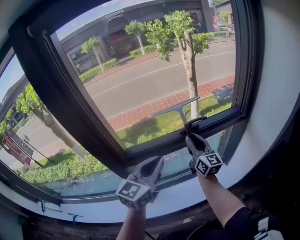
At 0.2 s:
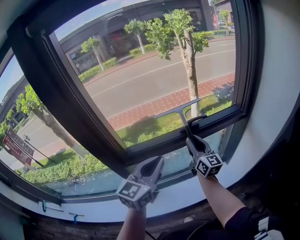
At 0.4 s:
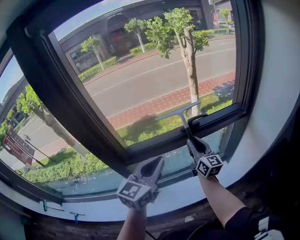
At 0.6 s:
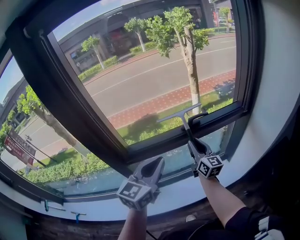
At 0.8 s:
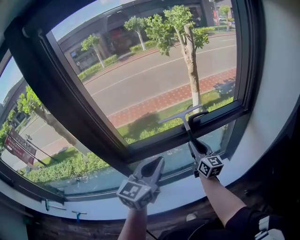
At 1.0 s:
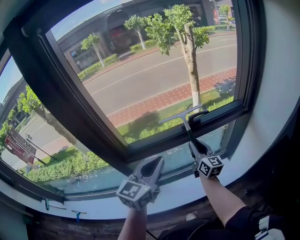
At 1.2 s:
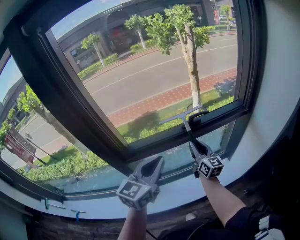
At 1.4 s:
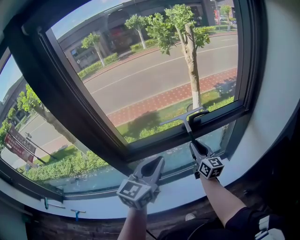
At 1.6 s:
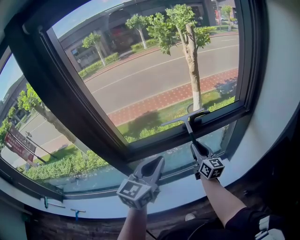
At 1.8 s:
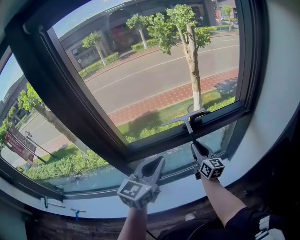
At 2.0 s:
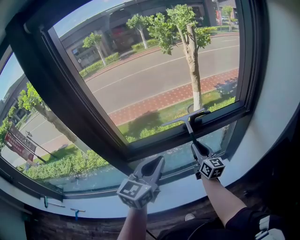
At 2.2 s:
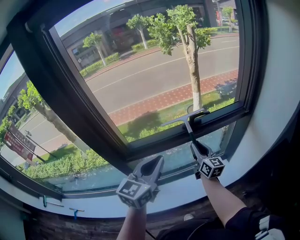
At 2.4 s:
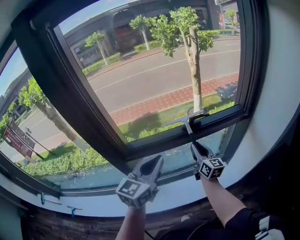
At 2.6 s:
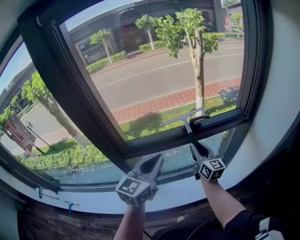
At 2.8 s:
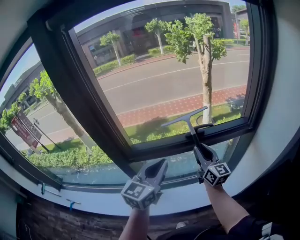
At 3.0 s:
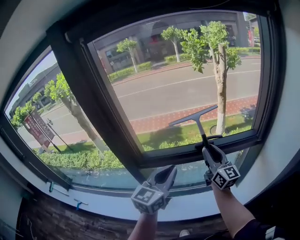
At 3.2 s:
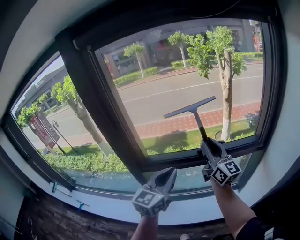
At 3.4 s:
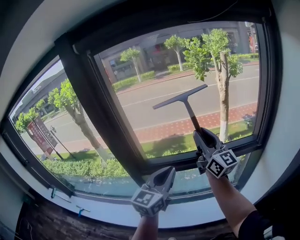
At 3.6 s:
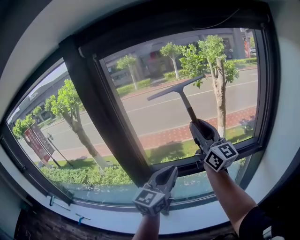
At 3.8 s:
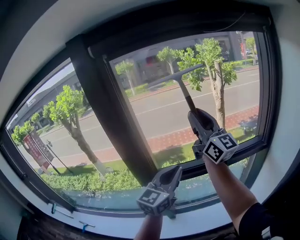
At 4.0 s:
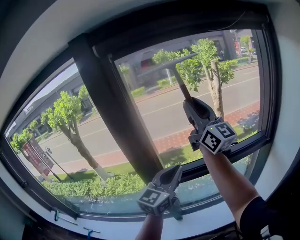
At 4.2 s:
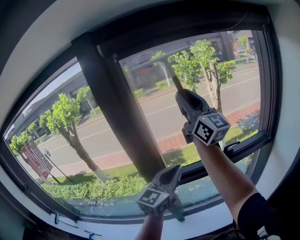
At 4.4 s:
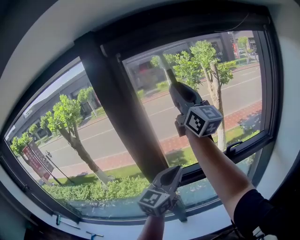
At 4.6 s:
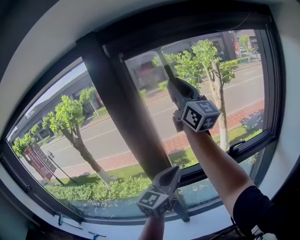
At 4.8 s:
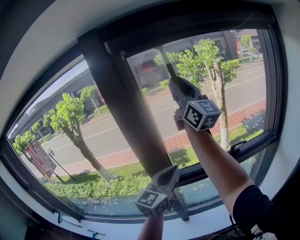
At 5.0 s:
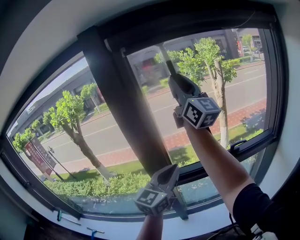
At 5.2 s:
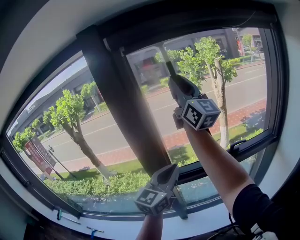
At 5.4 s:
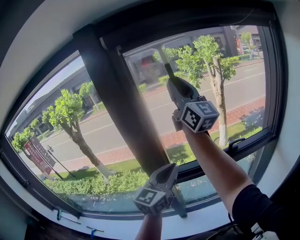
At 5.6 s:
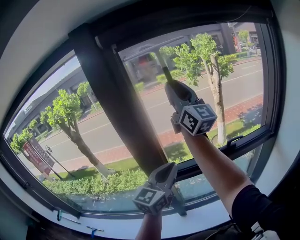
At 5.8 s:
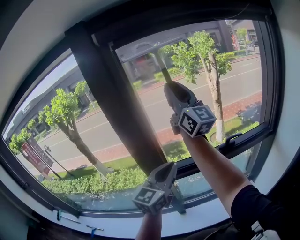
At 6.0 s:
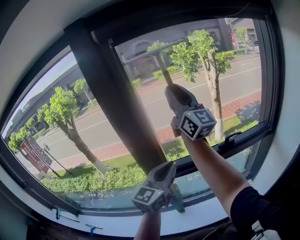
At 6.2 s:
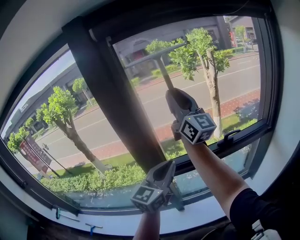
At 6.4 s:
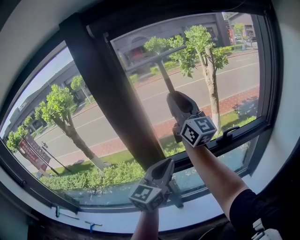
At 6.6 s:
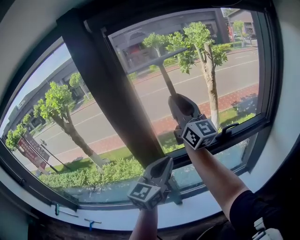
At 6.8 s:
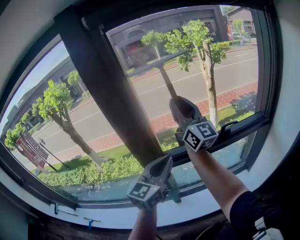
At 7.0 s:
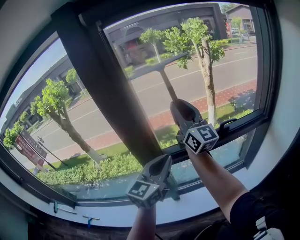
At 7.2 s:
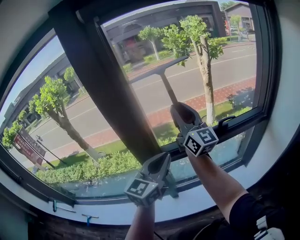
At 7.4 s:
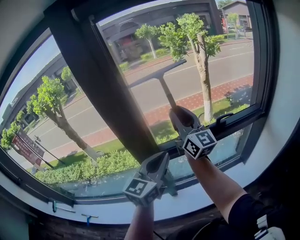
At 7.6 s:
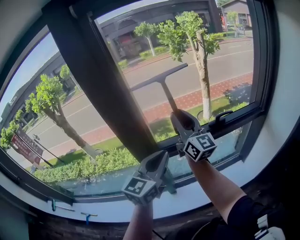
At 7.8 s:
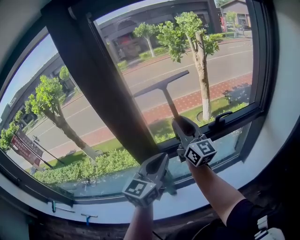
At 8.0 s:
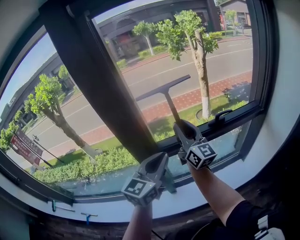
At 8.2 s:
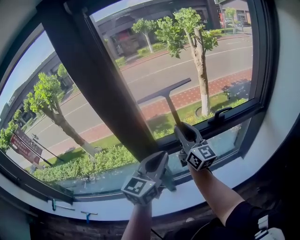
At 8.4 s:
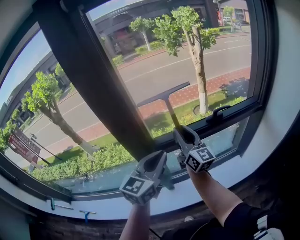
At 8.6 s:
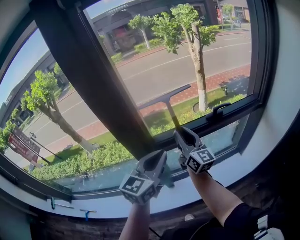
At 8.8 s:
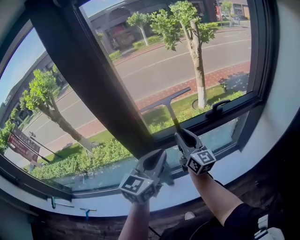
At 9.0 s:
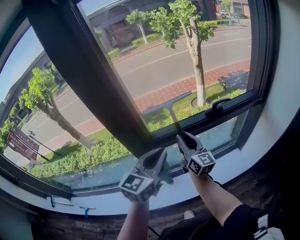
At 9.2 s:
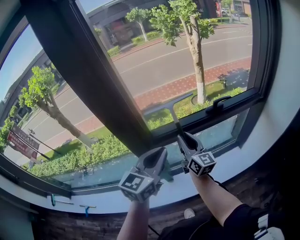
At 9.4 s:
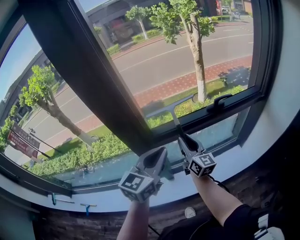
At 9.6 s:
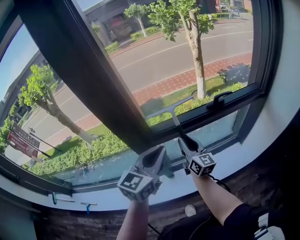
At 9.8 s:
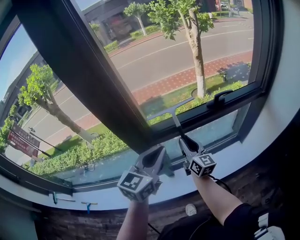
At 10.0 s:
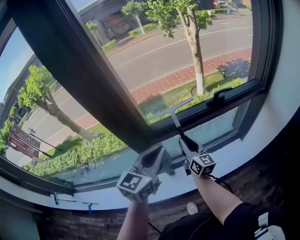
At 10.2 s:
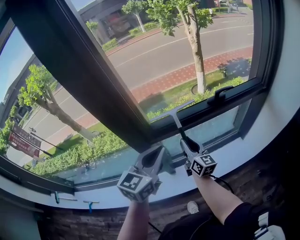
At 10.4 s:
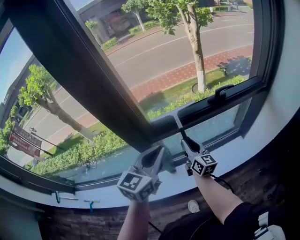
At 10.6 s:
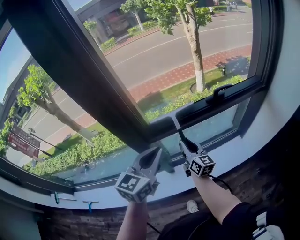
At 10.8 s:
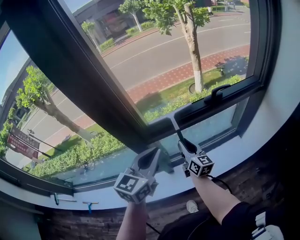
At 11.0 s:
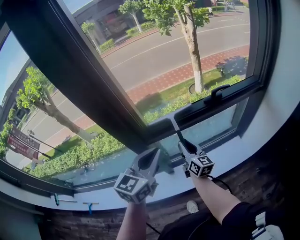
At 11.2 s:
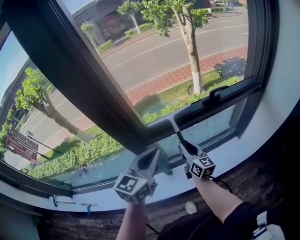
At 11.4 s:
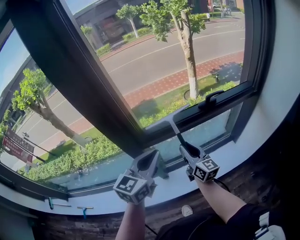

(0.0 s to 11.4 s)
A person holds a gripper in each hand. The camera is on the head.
0.0 s - 1.4 s: The right gripper travels downward by about 10 cm.
1.4 s - 2.8 s: The right gripper moves upward, roughly 10 cm.
2.8 s - 4.2 s: The right gripper travels upward and to the left by roughly 40 cm, and points its fingers about 30 degrees further upward; the left gripper is displaced to the left and upward by roughly 15 cm.
4.2 s - 5.6 s: The right gripper changes place by roughly 5 cm.
5.6 s - 7.2 s: The right gripper shifts approximately 20 cm downward.
7.2 s - 8.6 s: The right gripper moves downward, approximately 20 cm.
8.6 s - 10.0 s: The right gripper is displaced downward by approximately 15 cm.
10.0 s - 11.4 s: The grippers stay close to where they were, moving slightly.

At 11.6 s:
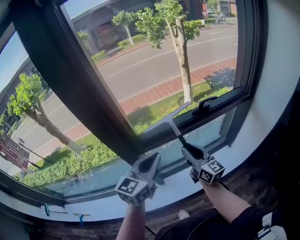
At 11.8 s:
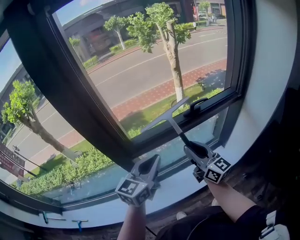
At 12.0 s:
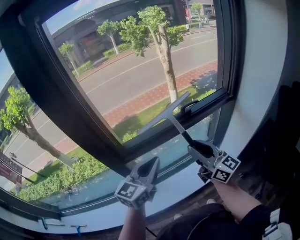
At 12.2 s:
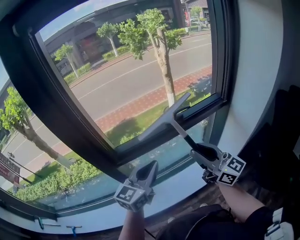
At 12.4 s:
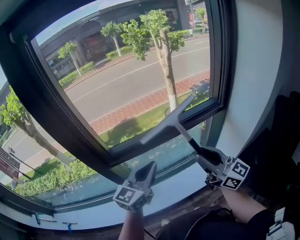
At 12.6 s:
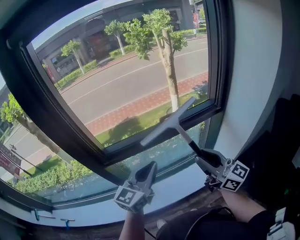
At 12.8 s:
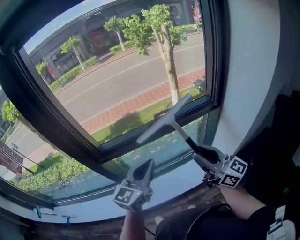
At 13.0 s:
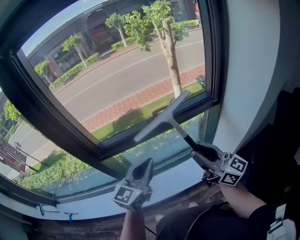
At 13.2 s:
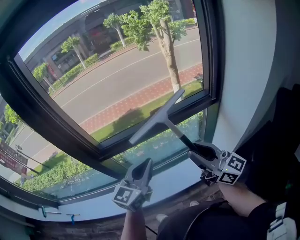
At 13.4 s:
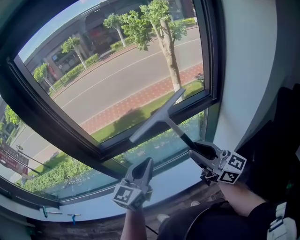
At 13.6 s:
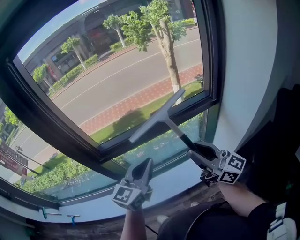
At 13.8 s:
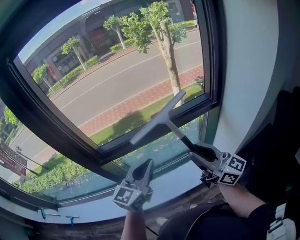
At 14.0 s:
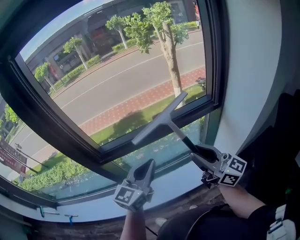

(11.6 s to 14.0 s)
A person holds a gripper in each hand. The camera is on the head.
11.6 s - 12.8 s: The left gripper travels to the right by roughly 20 cm, while the right gripper shifts about 30 cm to the right and upward.
12.8 s - 14.0 s: The grippers move only a little.

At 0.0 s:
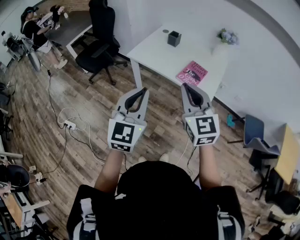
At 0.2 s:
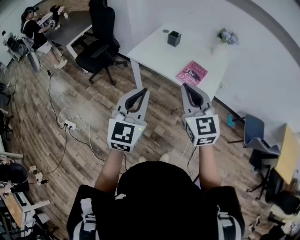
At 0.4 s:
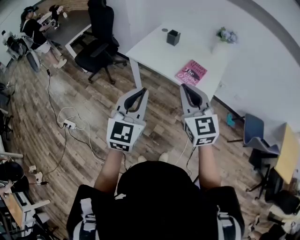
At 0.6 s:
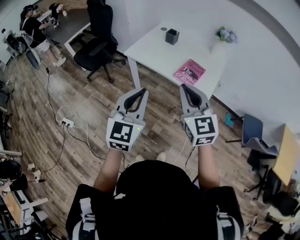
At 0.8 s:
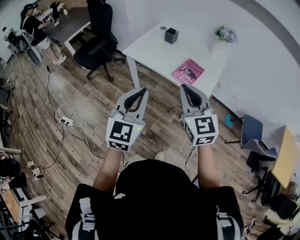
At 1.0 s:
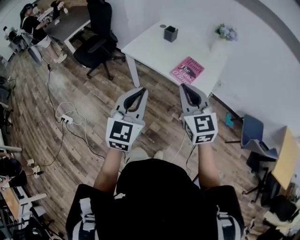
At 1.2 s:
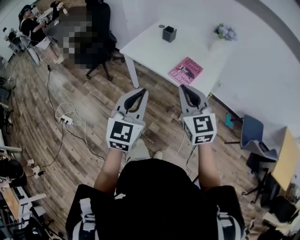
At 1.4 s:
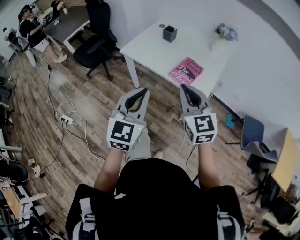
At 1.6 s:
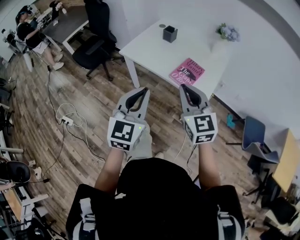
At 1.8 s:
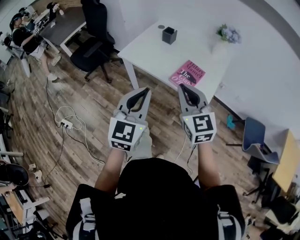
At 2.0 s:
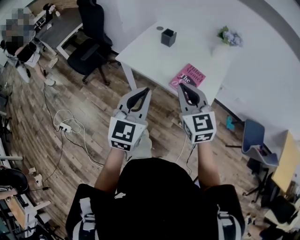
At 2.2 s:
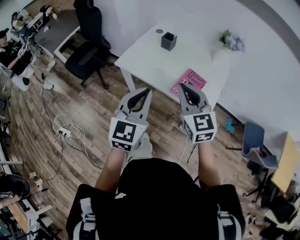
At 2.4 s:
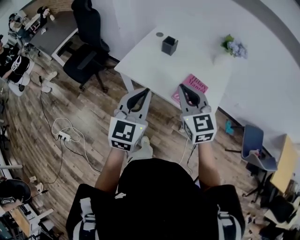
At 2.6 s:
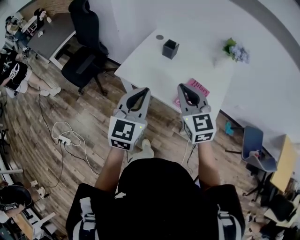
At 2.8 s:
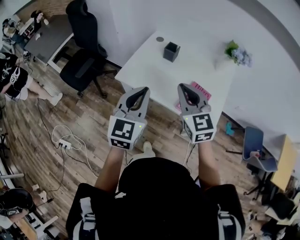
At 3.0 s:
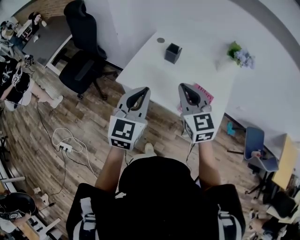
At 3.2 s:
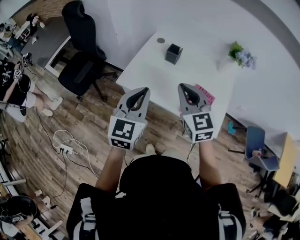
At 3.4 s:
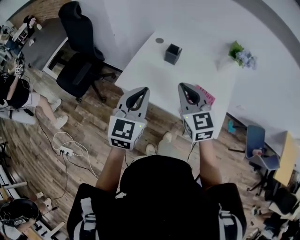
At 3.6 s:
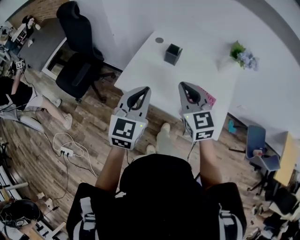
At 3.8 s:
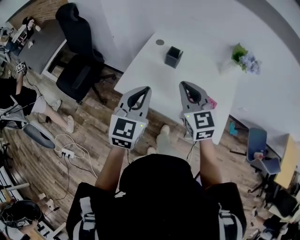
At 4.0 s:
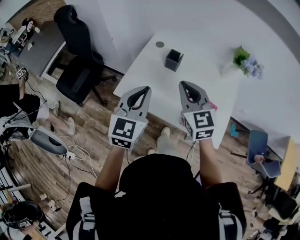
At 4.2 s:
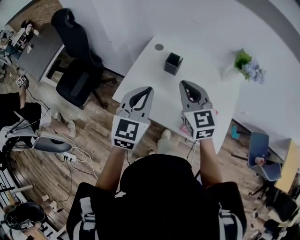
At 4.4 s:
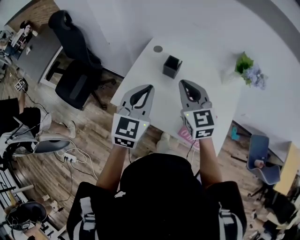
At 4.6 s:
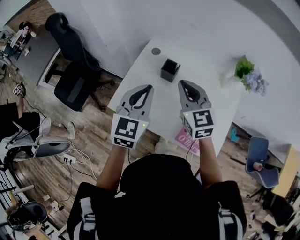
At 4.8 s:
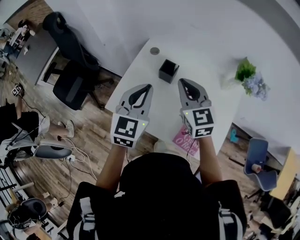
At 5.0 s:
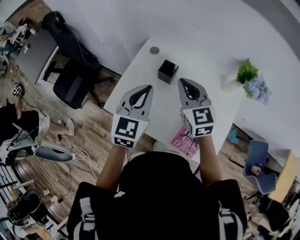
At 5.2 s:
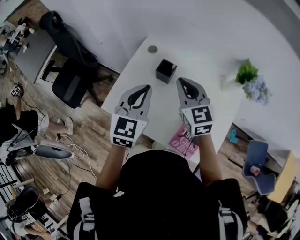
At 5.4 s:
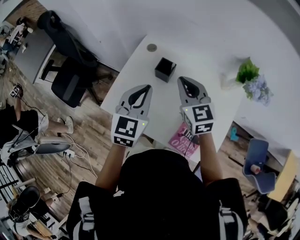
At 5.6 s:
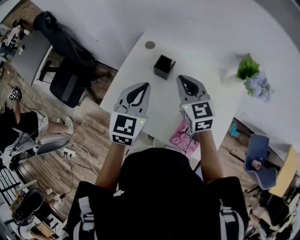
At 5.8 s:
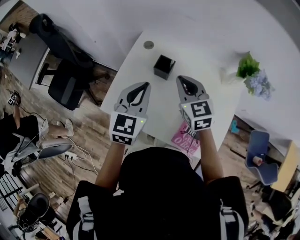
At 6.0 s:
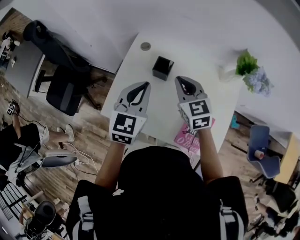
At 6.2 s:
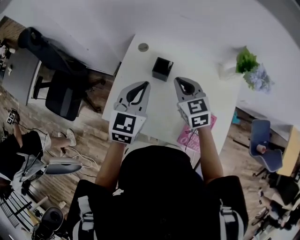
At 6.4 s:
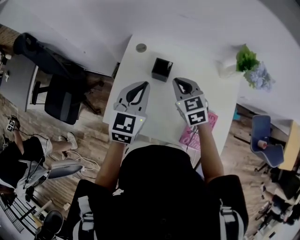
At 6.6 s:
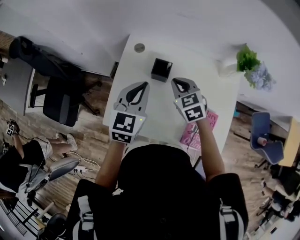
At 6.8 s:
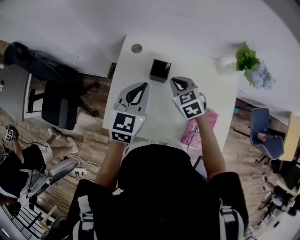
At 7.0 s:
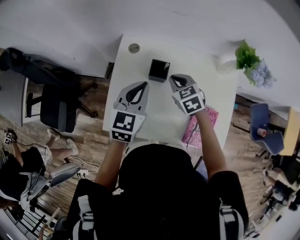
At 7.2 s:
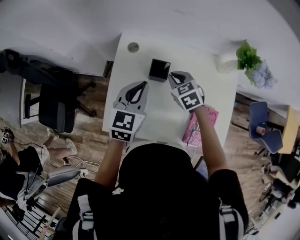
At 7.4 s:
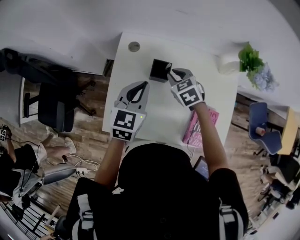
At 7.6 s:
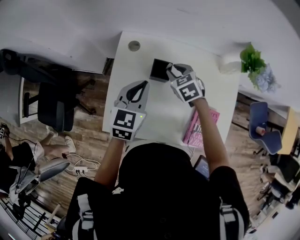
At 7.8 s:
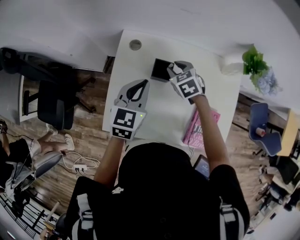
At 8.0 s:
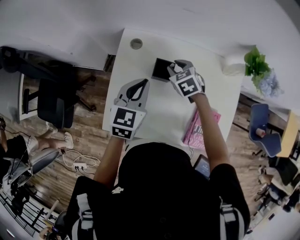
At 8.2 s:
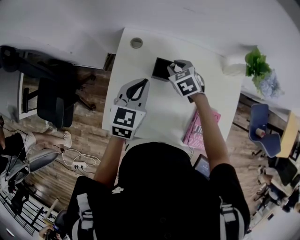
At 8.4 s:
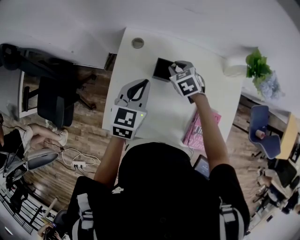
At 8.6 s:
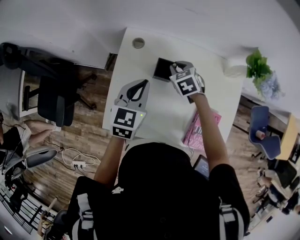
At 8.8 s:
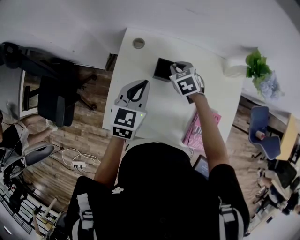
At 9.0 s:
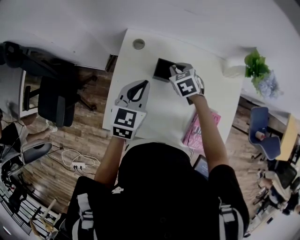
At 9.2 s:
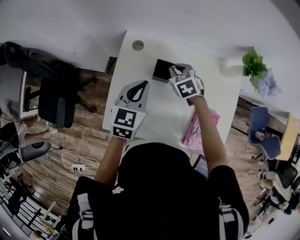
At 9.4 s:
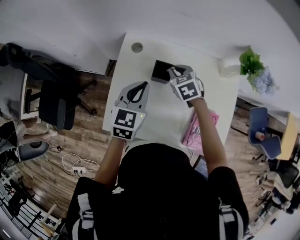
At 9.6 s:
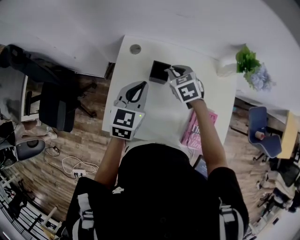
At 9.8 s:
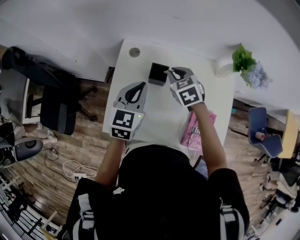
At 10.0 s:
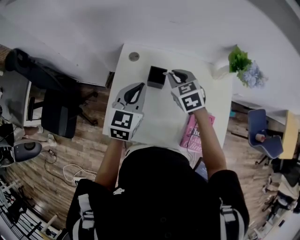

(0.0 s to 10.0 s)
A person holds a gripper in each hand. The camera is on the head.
0.0 s - 1.4 s: Both grippers travel together to the right, approximately 10 cm.
1.4 s - 2.8 s: Both grippers travel together forward, some 25 cm.
2.8 s - 4.2 s: Both grippers travel together forward, about 15 cm.
4.2 s - 5.8 s: Both grippers move forward and downward, some 15 cm.
5.8 s - 7.2 s: The left gripper heads forward and downward, covering some 10 cm, while the right gripper shifts about 15 cm downward and forward, and swivels some 30 degrees.
7.2 s - 8.6 s: The right gripper shifts about 5 cm forward.
8.6 s - 10.0 s: The right gripper travels upward by roughly 15 cm; the left gripper heads upward, covering roughly 5 cm.
